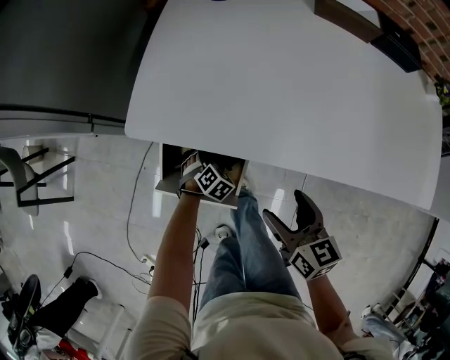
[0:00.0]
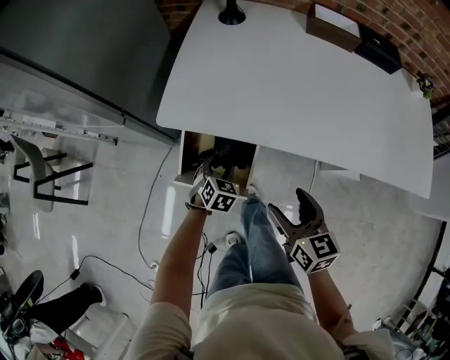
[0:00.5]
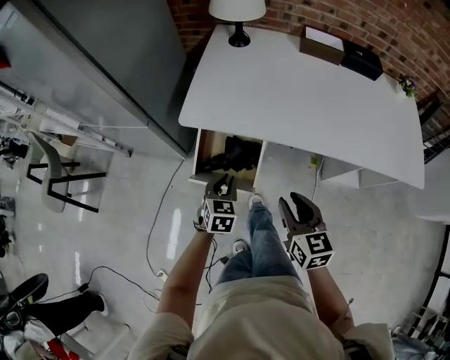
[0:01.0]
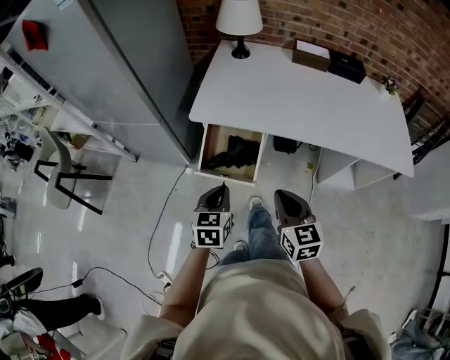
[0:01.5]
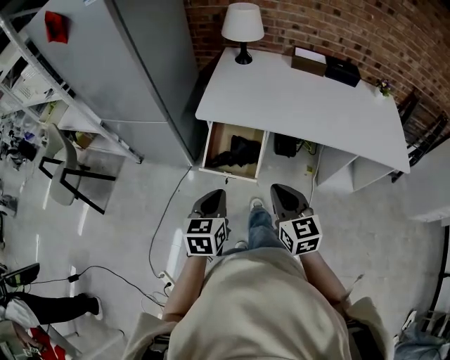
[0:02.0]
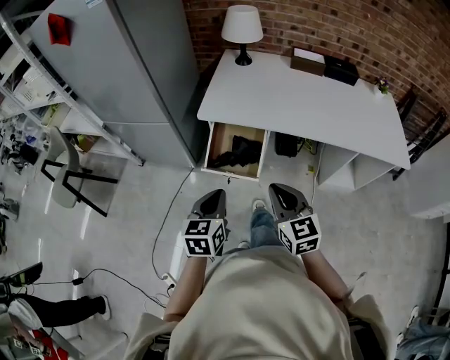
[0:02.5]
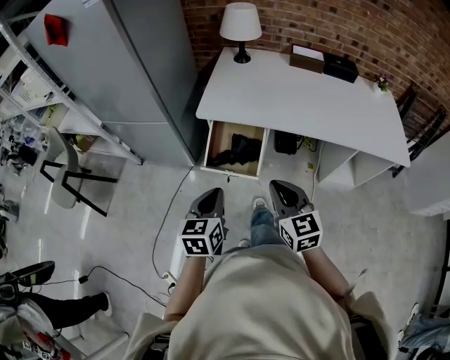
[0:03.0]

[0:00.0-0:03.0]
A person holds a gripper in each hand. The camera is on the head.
0:00.0 to 0:01.5: The right gripper is displaced backward and upward by approximately 25 cm, rotates some 20 degrees, and closes, while the left gripper is displaced upward and backward by approximately 40 cm, points its fingers roughly 40 degrees further upward, and closes its fingers.
0:01.5 to 0:03.0: The right gripper changes place by about 5 cm. The left gripper shifts about 10 cm backward and upward.

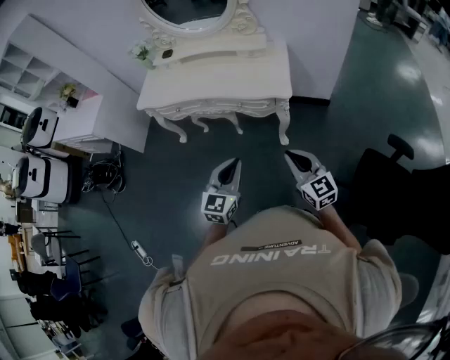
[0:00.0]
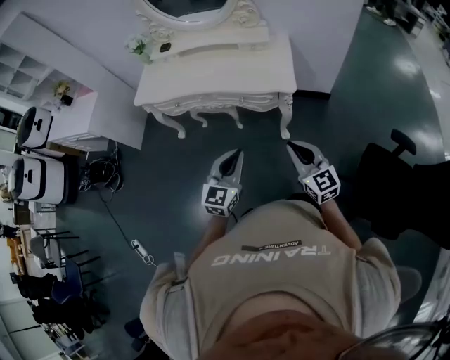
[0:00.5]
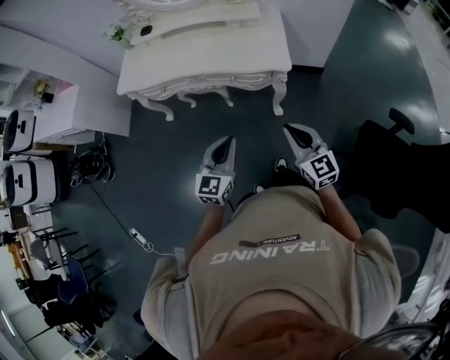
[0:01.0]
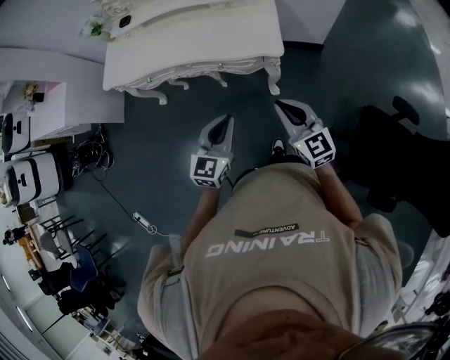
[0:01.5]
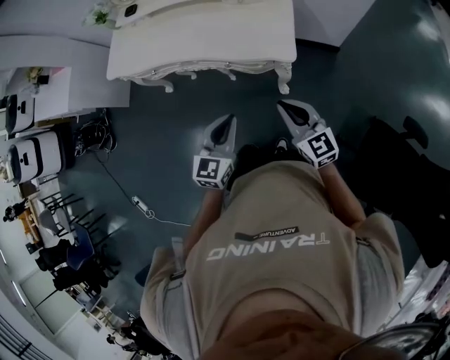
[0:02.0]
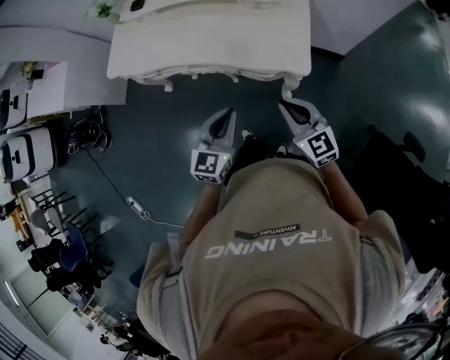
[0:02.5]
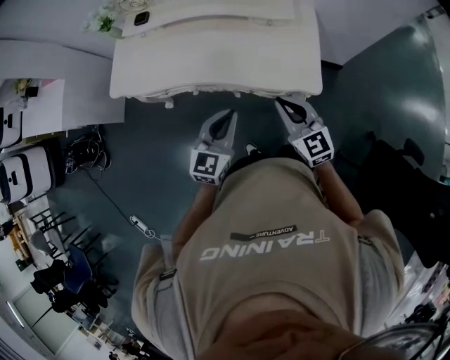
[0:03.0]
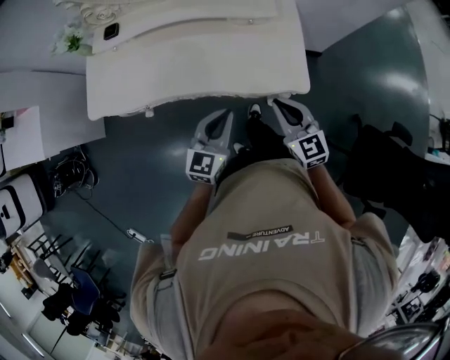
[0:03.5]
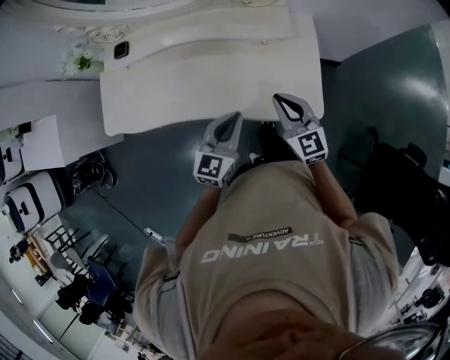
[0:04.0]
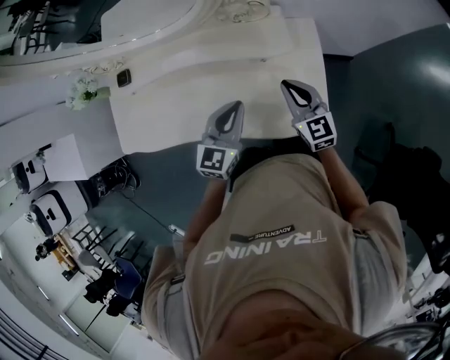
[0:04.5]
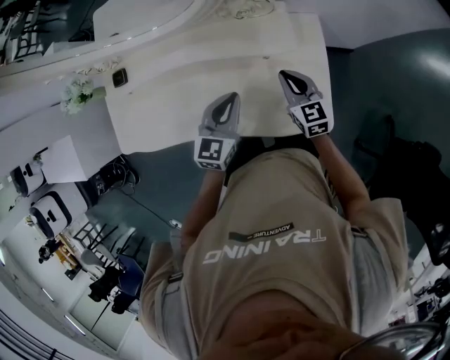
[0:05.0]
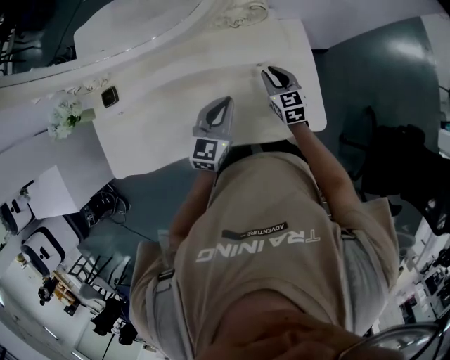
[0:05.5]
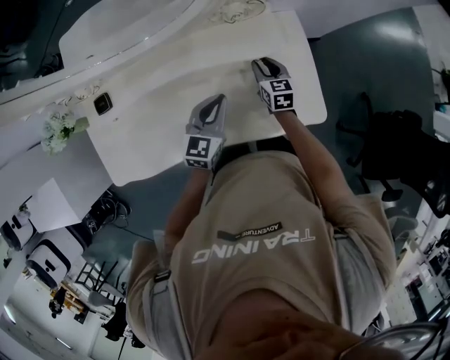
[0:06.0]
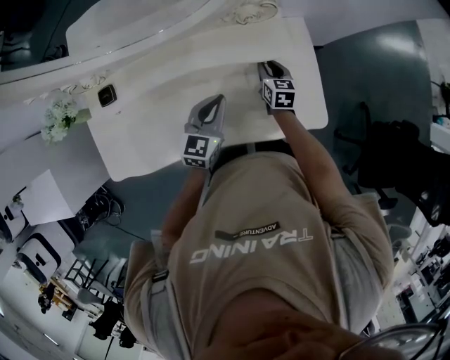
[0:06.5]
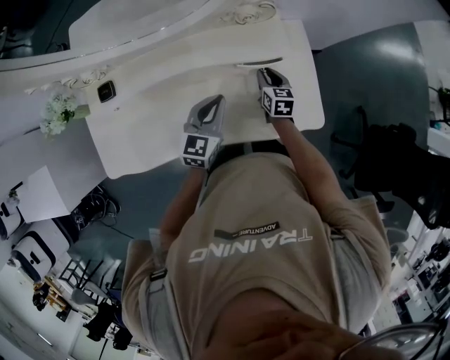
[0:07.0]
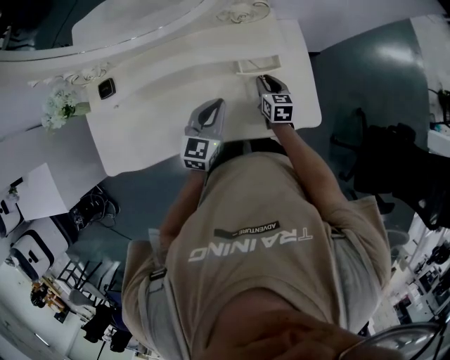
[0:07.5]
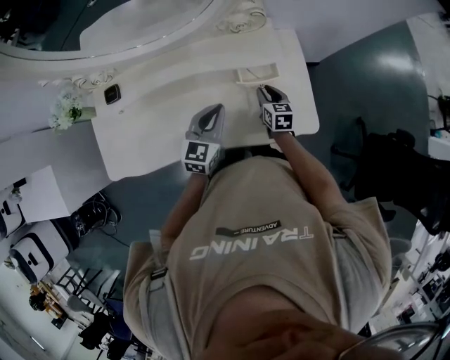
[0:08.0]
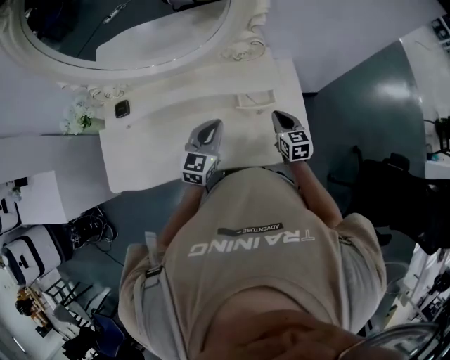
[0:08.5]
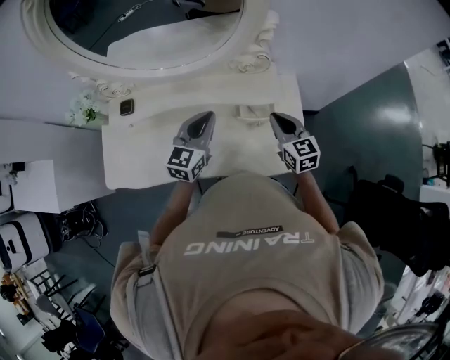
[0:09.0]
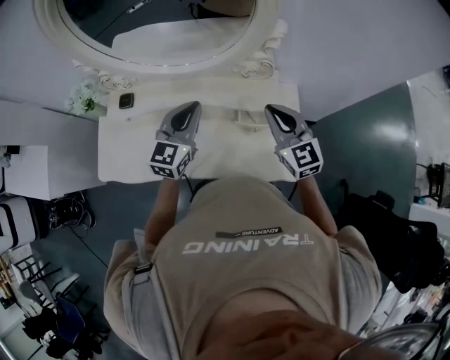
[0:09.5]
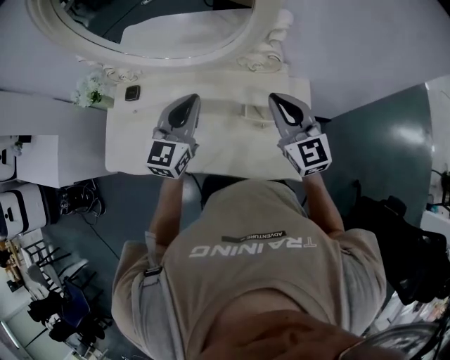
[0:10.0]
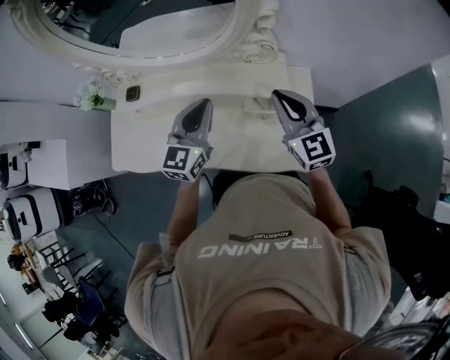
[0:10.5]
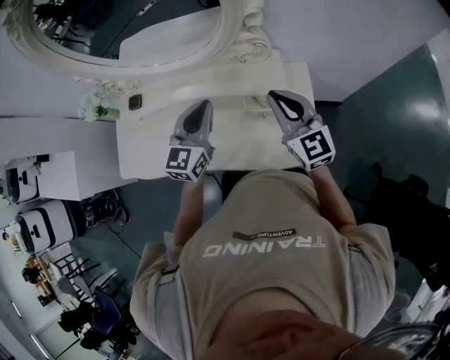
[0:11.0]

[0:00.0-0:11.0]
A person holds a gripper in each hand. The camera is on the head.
0:00.0 to 0:02.0: Both grippers travel together forward, about 20 cm.
0:02.0 to 0:03.5: The two grippers go about 25 cm forward and to the left.
0:03.5 to 0:05.5: The right gripper shifts approximately 35 cm forward and downward, and swivels roughly 30 degrees, while the left gripper travels forward by approximately 30 cm.
0:05.5 to 0:07.5: The right gripper ends up about 5 cm from where it was.
0:07.5 to 0:09.0: The right gripper is displaced upward by roughly 20 cm, turns by about 30 degrees, and closes. Meanwhile the left gripper goes approximately 10 cm upward.
0:09.0 to 0:11.0: The right gripper heads upward, covering some 10 cm, and swivels roughly 20 degrees. Meanwhile the left gripper moves about 5 cm.

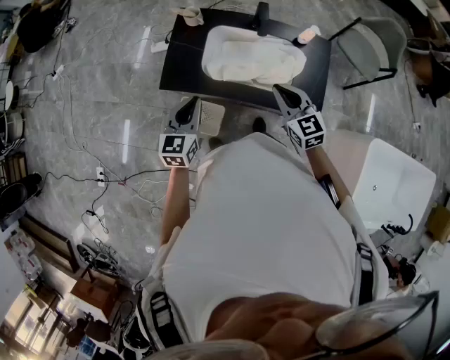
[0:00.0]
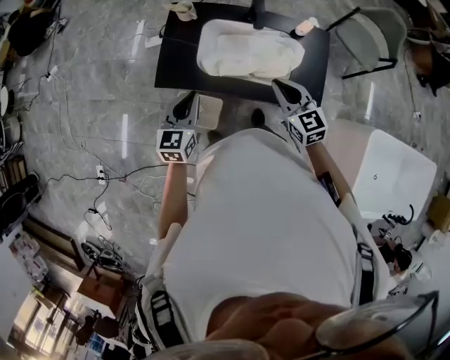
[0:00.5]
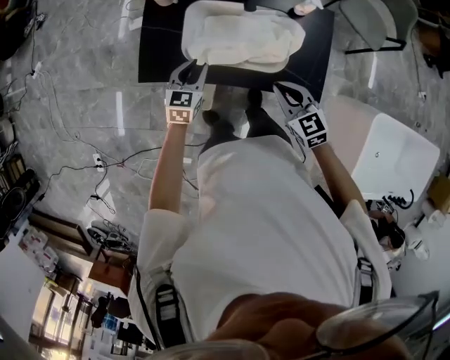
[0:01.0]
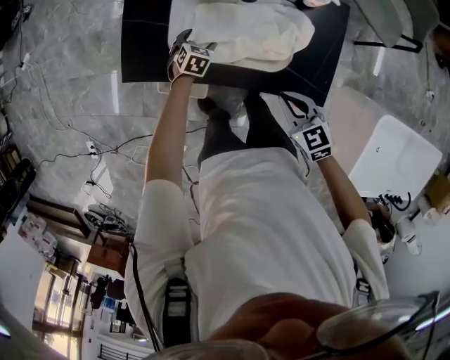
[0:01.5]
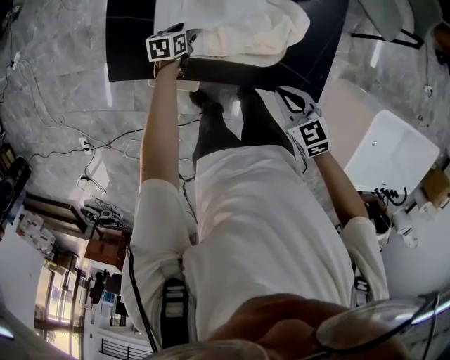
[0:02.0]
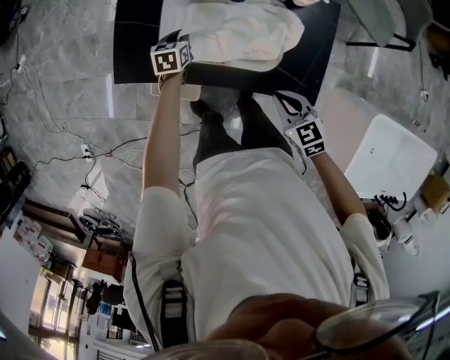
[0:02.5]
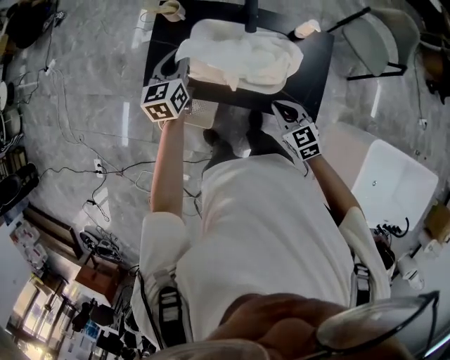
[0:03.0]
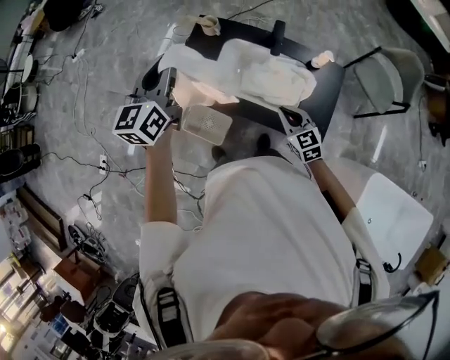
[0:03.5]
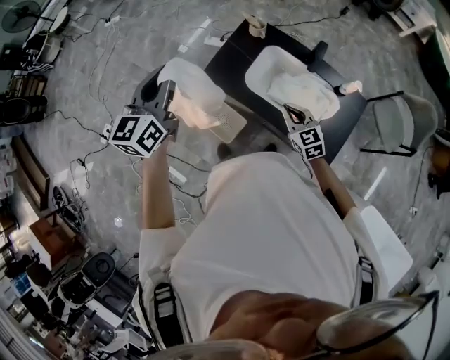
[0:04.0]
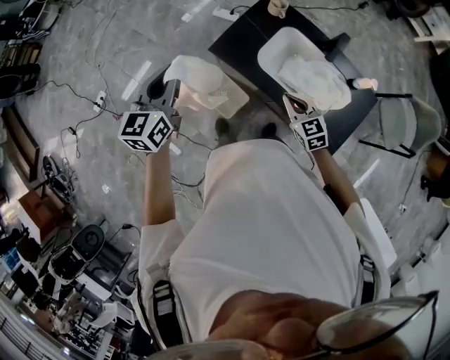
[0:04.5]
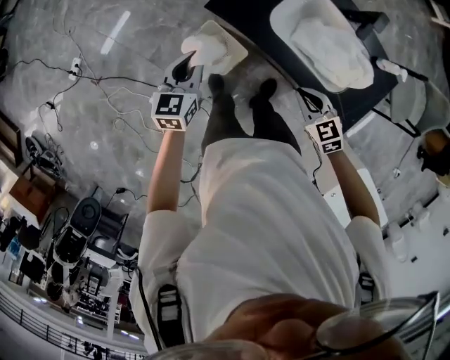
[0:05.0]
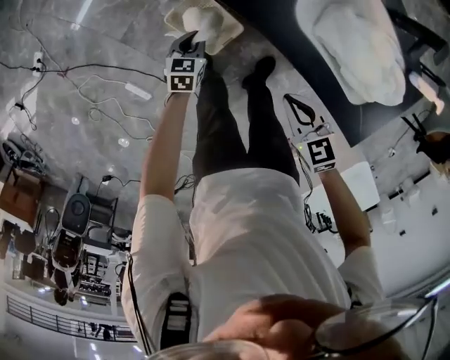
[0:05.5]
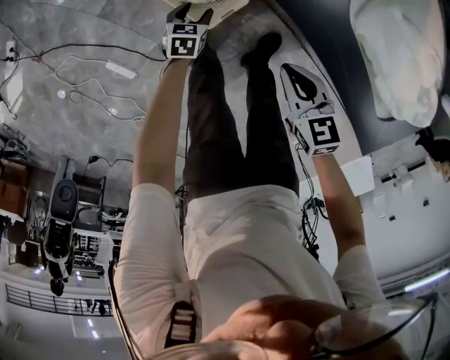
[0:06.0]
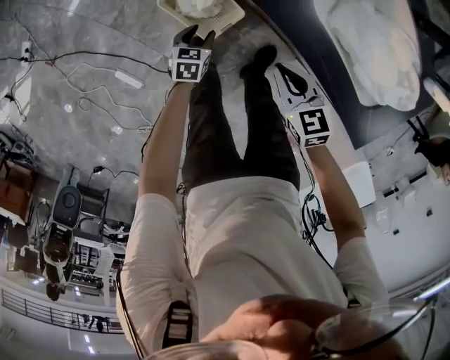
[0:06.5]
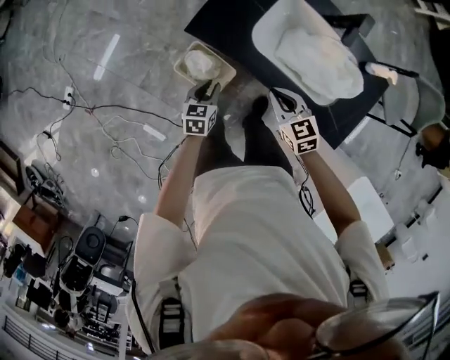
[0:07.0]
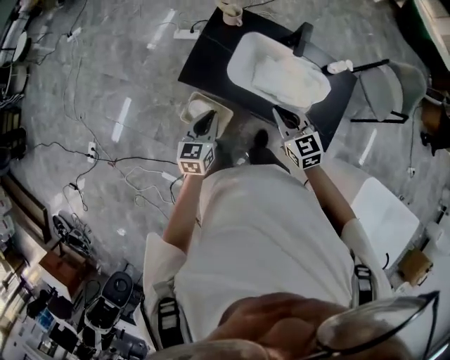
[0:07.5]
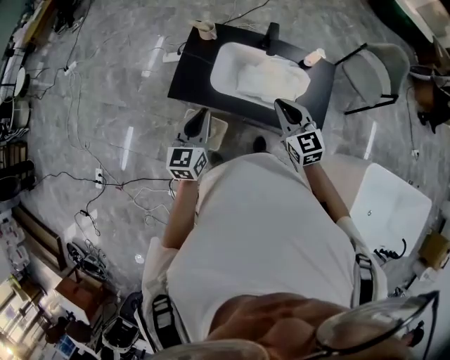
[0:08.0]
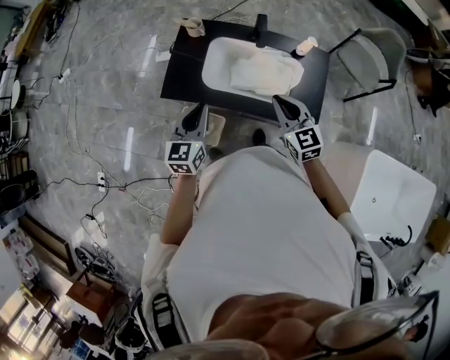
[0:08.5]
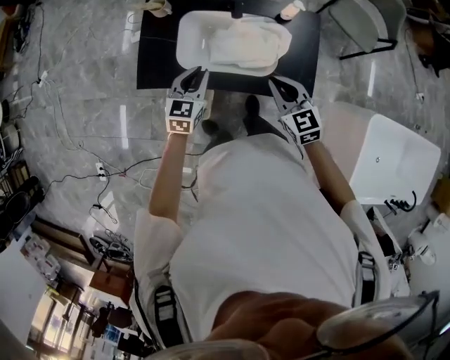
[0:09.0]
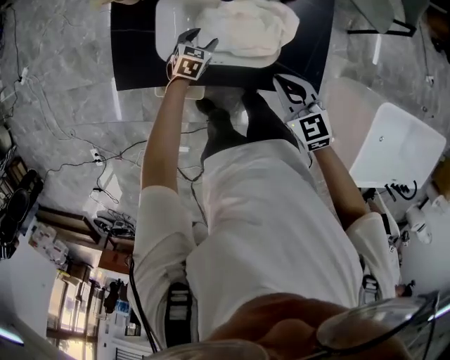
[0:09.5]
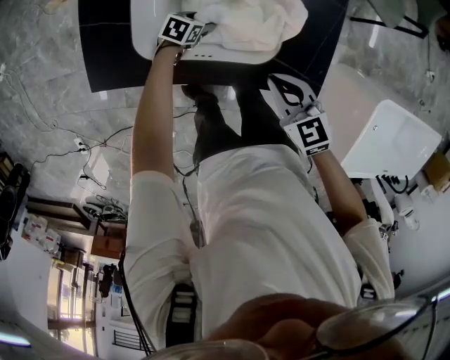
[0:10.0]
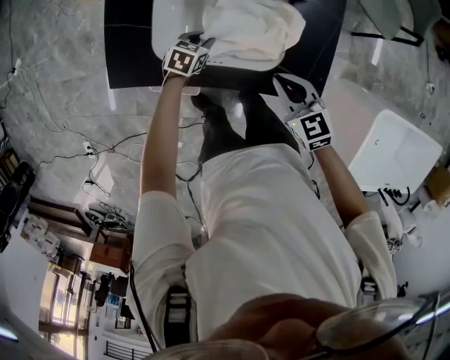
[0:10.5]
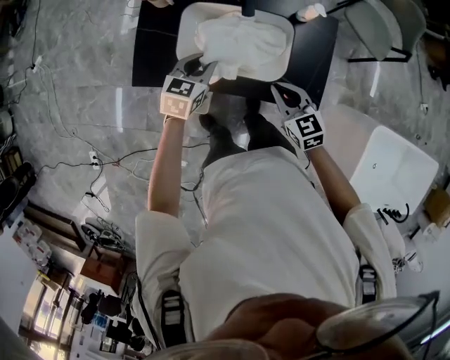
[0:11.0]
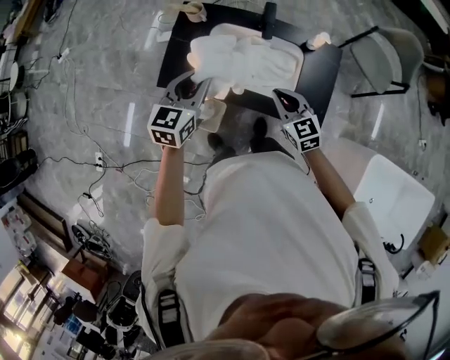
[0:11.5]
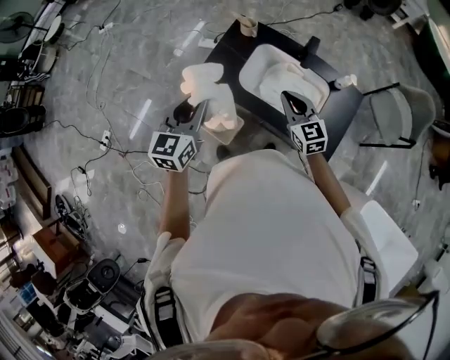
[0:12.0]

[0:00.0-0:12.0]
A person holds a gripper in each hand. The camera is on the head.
0:00.0 to 0:02.0: The left gripper is displaced downward and forward by some 40 cm, tips its fingers downward by some 30 degrees, and opens. Meanwhile the right gripper moves downward and to the right, approximately 25 cm, and swivels roughly 20 degrees.
0:02.0 to 0:04.0: The right gripper moves about 20 cm, and changes its angle by about 30 degrees, while the left gripper moves upward, roughly 60 cm, tips its fingers upward by some 50 degrees, and closes.
0:04.0 to 0:06.0: The right gripper moves downward, approximately 40 cm, and rotates approximately 30 degrees, while the left gripper is displaced downward by about 90 cm, tips its fingers downward by roughly 50 degrees, and opens.
0:06.0 to 0:08.0: The grippers both shift upward by roughly 60 cm. The left gripper tilts its fingers roughly 40 degrees upward, and closes its fingers. Meanwhile the right gripper tips its fingers upward by approximately 30 degrees.
0:08.0 to 0:10.0: The right gripper shifts roughly 25 cm downward, and changes its angle by about 20 degrees. Meanwhile the left gripper moves downward, some 50 cm, points its fingers approximately 40 degrees further downward, and opens up.
0:10.0 to 0:12.0: The left gripper is displaced upward by about 60 cm, points its fingers approximately 40 degrees further upward, and closes its fingers. Meanwhile the right gripper moves upward, approximately 20 cm, and turns by about 30 degrees.
